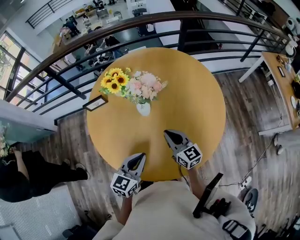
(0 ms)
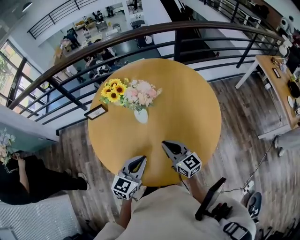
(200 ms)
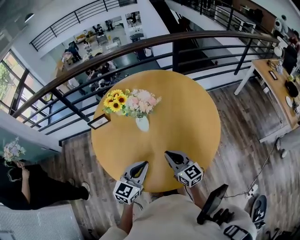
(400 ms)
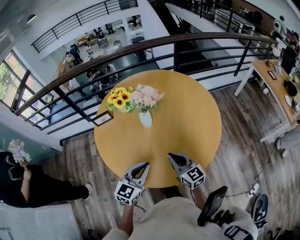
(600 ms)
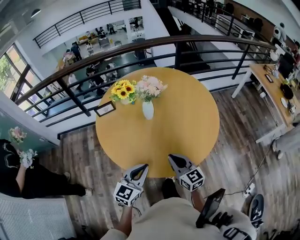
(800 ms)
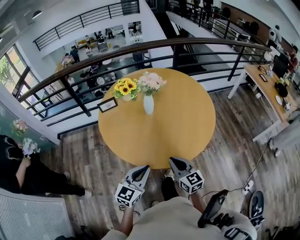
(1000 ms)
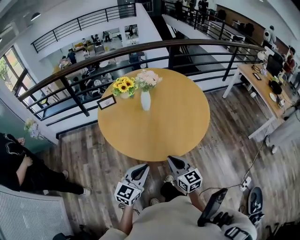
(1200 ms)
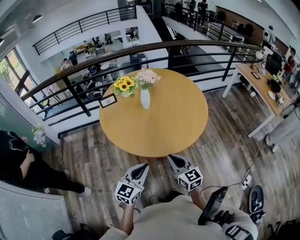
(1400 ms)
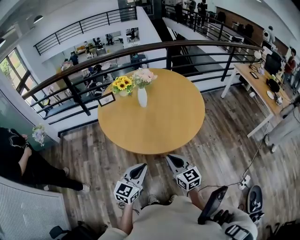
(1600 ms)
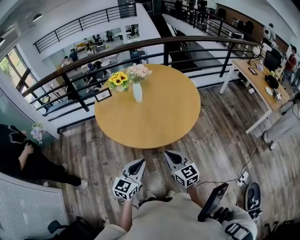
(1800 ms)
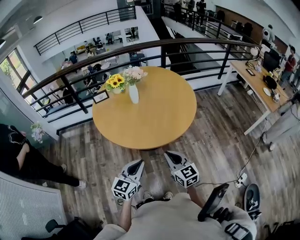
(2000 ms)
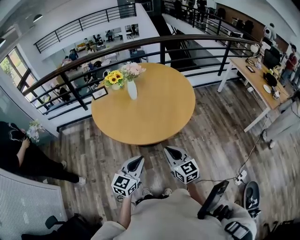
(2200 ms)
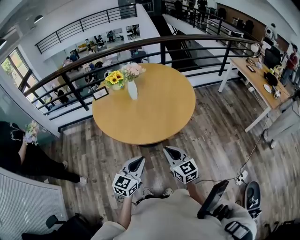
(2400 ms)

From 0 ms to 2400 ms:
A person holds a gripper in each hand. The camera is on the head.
From 0 ms to 1200 ms: Both grippers move backward, approximately 25 cm.
From 1200 ms to 2400 ms: Both grippers move to the right and backward, about 10 cm.

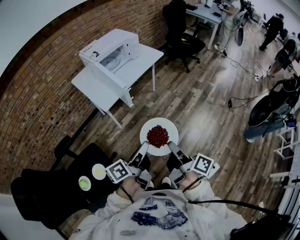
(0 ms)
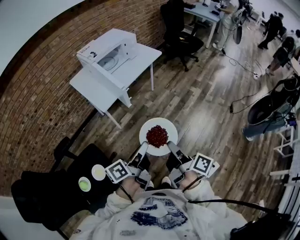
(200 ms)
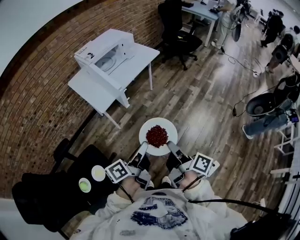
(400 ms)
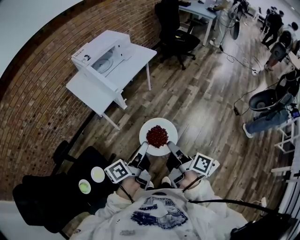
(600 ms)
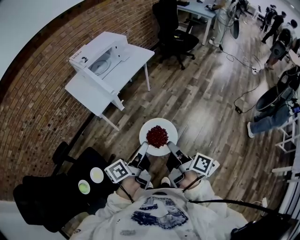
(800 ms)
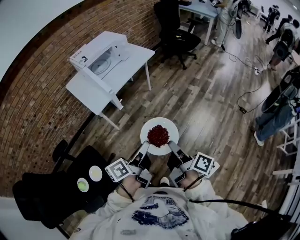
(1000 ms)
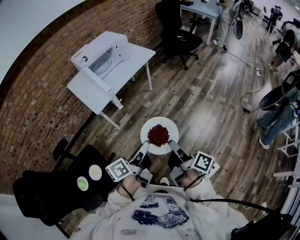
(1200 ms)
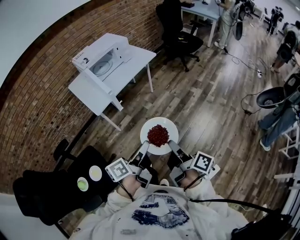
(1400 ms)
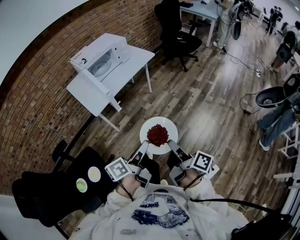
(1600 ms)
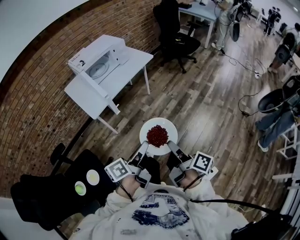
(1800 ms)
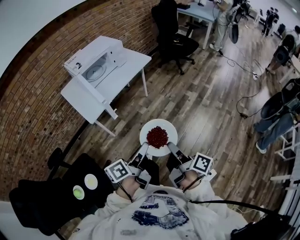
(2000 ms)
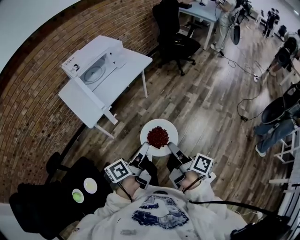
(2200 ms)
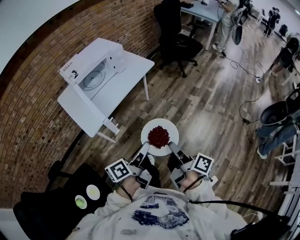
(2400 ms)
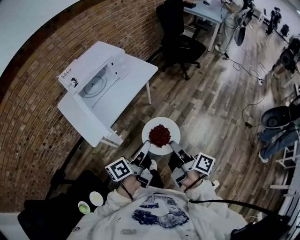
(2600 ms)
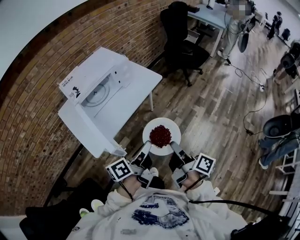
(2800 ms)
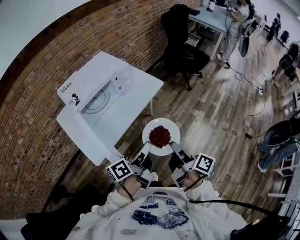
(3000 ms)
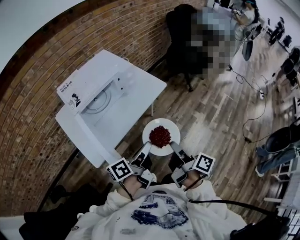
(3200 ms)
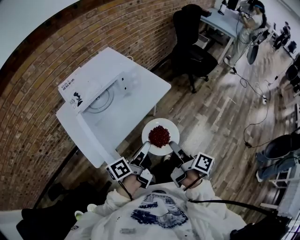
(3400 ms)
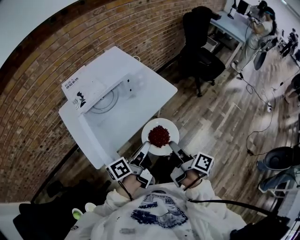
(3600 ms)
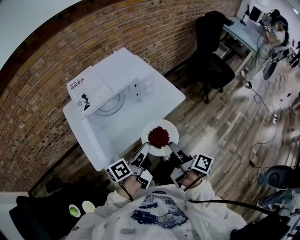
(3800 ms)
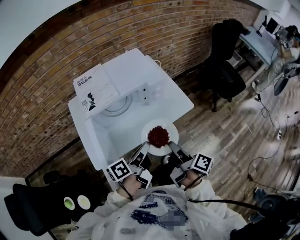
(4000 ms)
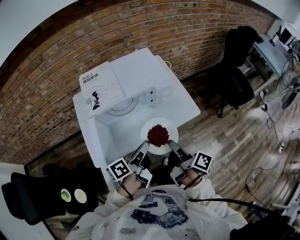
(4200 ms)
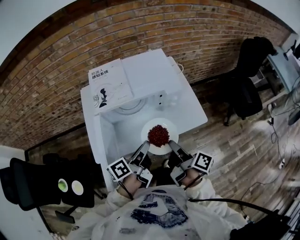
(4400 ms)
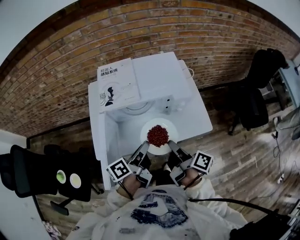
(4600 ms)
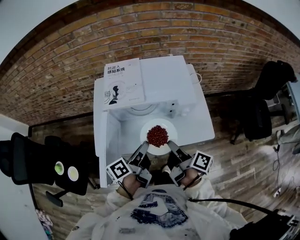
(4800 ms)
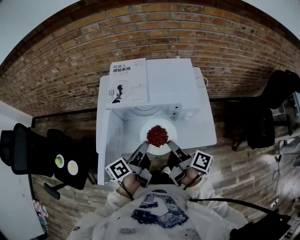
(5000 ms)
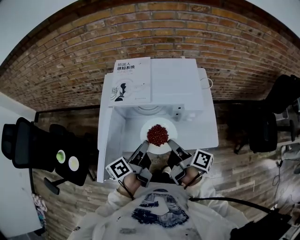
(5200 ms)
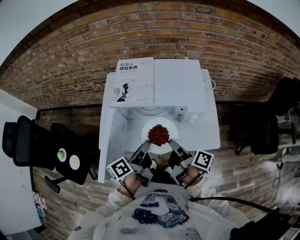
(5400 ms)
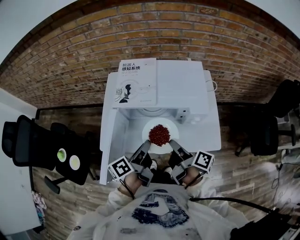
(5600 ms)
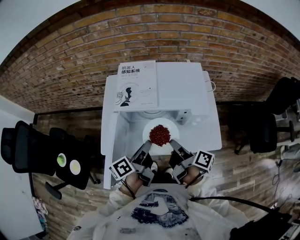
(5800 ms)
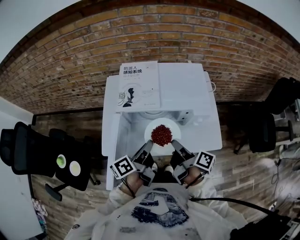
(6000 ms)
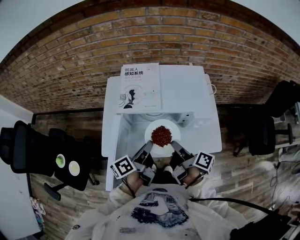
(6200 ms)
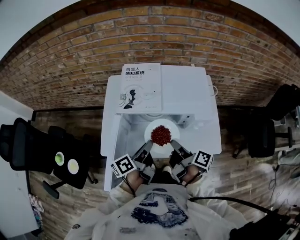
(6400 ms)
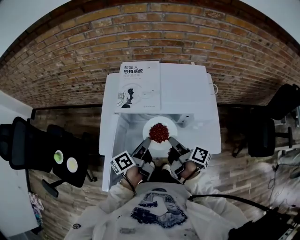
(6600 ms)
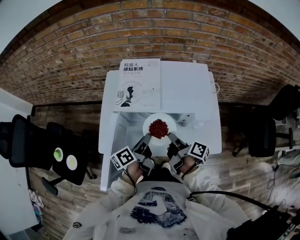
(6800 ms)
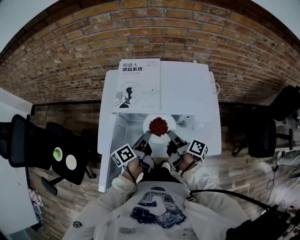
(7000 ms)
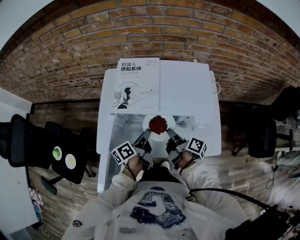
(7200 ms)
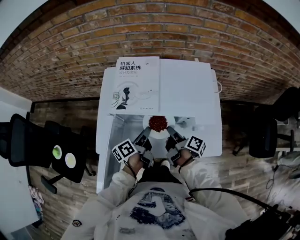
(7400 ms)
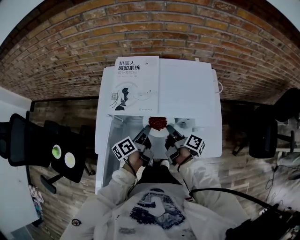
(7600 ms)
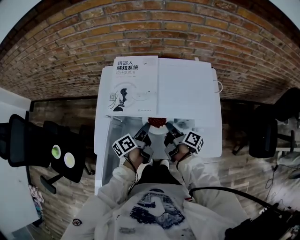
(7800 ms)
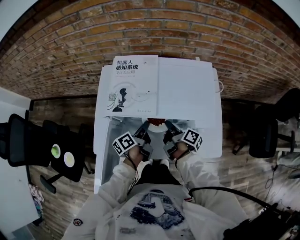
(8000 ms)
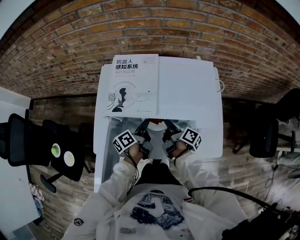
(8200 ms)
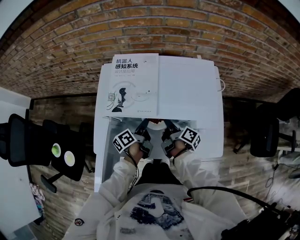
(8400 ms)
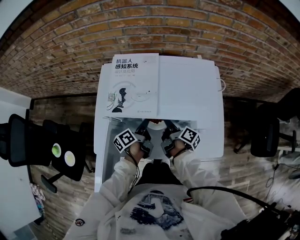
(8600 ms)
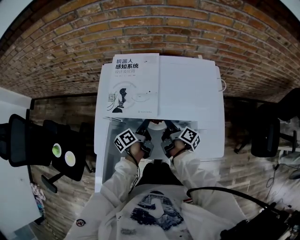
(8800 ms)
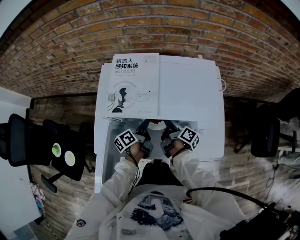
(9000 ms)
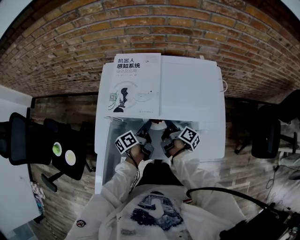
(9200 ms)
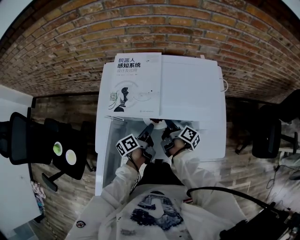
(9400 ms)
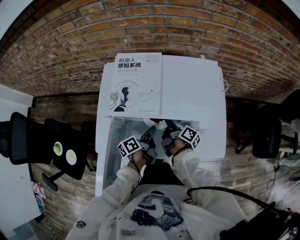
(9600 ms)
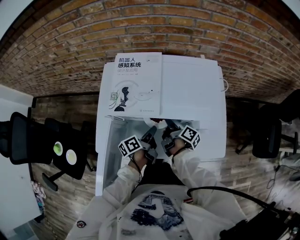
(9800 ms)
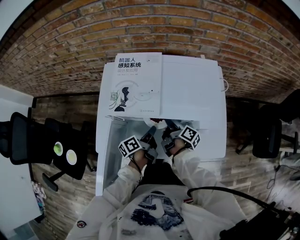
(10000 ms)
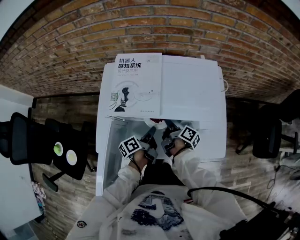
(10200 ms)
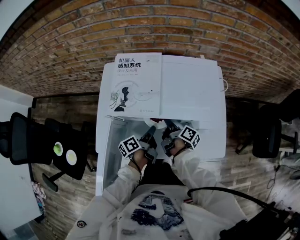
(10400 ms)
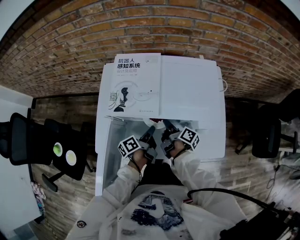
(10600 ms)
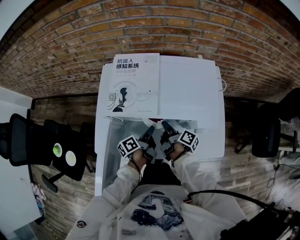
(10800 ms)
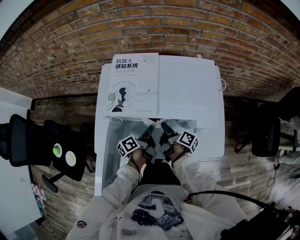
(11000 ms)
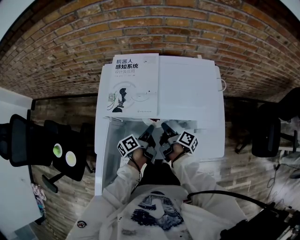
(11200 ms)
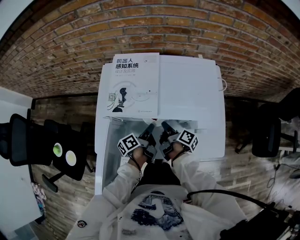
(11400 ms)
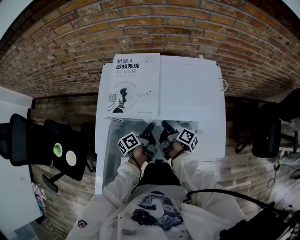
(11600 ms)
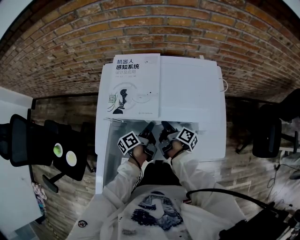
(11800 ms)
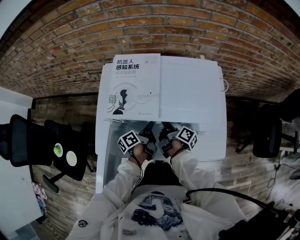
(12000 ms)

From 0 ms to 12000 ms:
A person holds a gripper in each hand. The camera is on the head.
From 0 ms to 1600 ms: The left gripper changes place by roughly 10 cm.
From 1600 ms to 3000 ms: The left gripper changes place by approximately 40 cm.
From 3000 ms to 4400 ms: The left gripper changes place by about 25 cm, and turns by about 30 degrees.
From 4400 ms to 6000 ms: The left gripper moves roughly 10 cm.
From 6000 ms to 7600 ms: The left gripper shifts approximately 10 cm downward.
From 7600 ms to 9000 ms: The left gripper is displaced downward by approximately 5 cm.

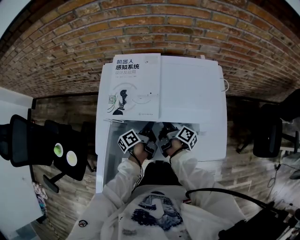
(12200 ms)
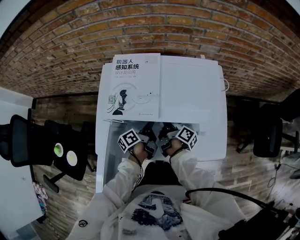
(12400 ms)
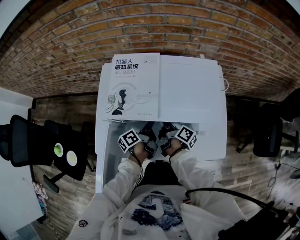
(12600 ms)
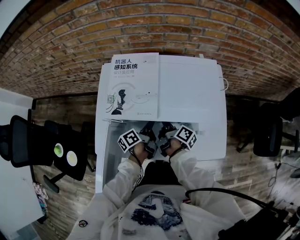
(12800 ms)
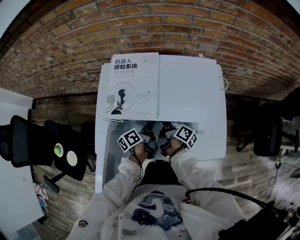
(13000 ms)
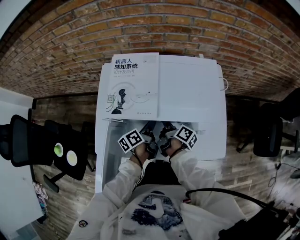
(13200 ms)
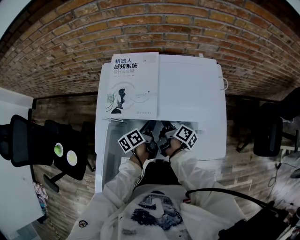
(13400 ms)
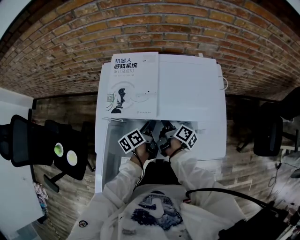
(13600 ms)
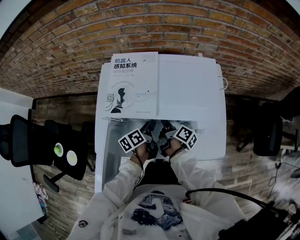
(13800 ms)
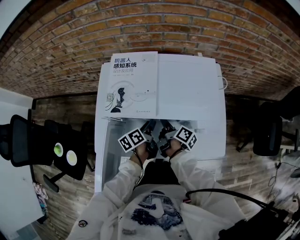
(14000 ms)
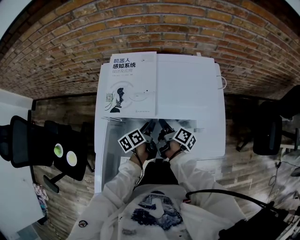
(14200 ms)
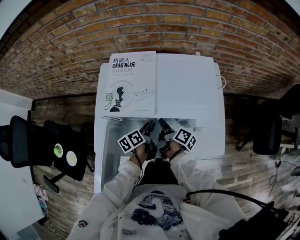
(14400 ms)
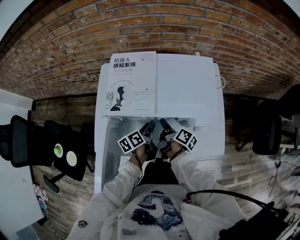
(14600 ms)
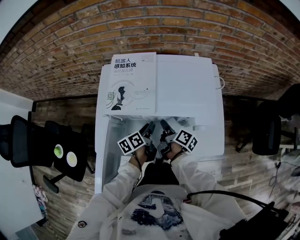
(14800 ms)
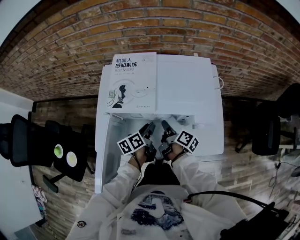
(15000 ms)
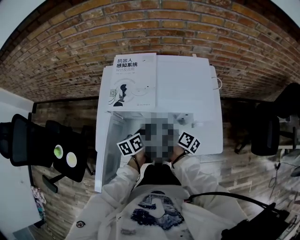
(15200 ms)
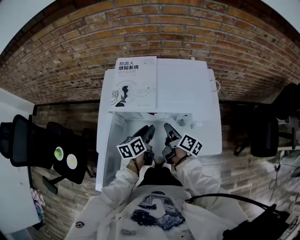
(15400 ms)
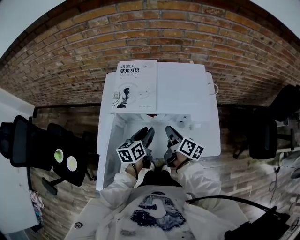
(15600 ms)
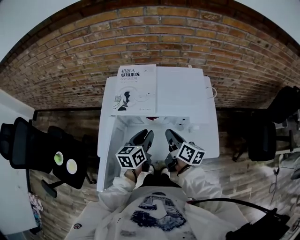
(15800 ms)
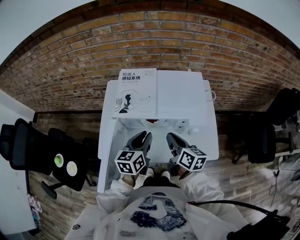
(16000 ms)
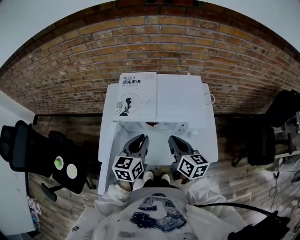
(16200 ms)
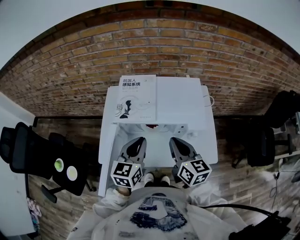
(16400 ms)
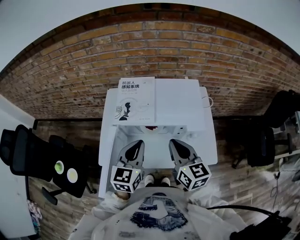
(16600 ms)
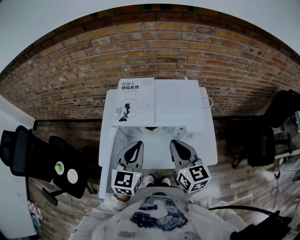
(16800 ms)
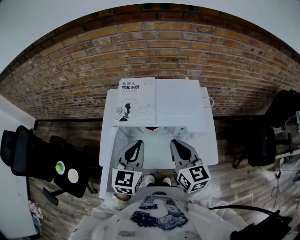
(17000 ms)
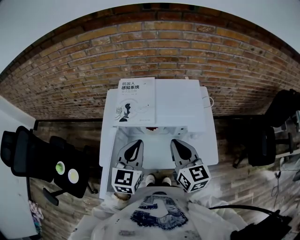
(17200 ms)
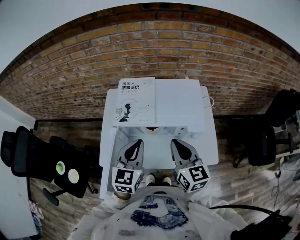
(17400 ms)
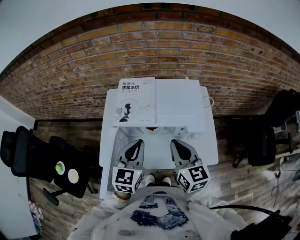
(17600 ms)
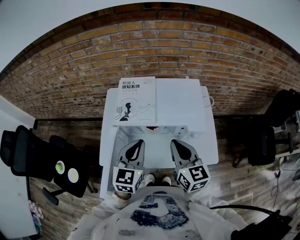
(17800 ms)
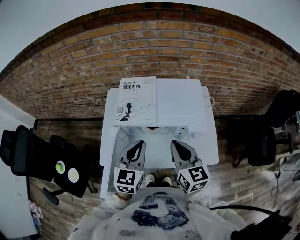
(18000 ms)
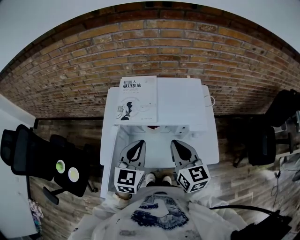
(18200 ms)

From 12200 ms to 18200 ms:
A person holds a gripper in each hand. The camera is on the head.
From 12200 ms to 13800 ms: The left gripper opens its fingers.
From 13800 ms to 15200 ms: The left gripper moves some 5 cm.
From 15200 ms to 16600 ms: The left gripper shifts about 20 cm upward, rotates around the line of its fingers by about 50 degrees, clockwise from behind, and closes up.

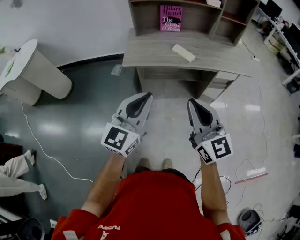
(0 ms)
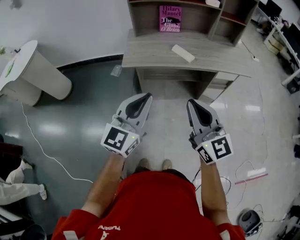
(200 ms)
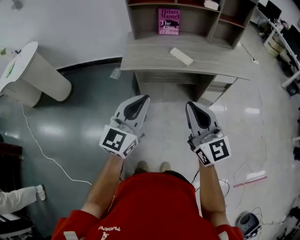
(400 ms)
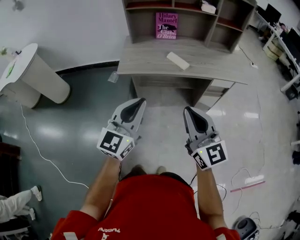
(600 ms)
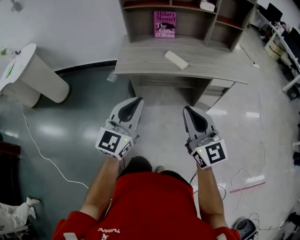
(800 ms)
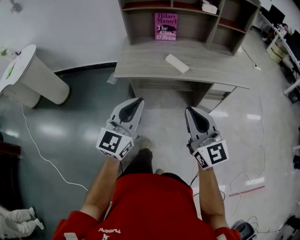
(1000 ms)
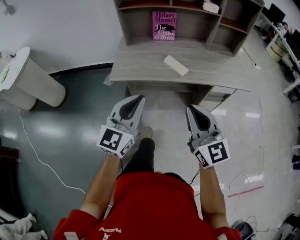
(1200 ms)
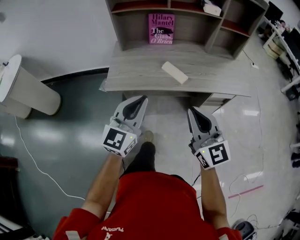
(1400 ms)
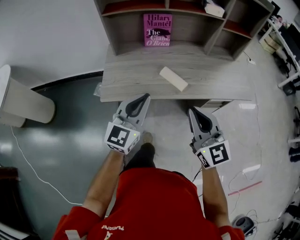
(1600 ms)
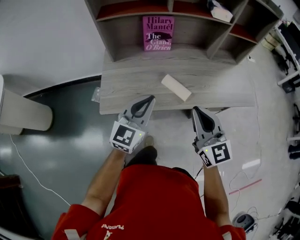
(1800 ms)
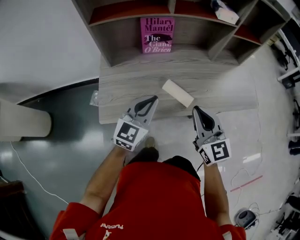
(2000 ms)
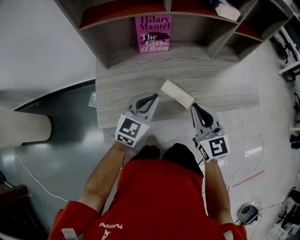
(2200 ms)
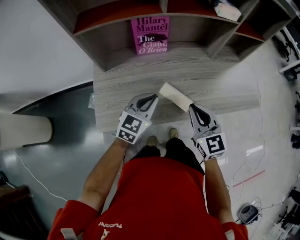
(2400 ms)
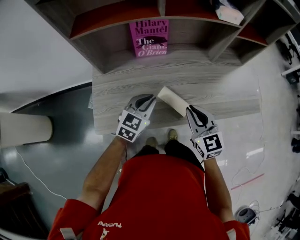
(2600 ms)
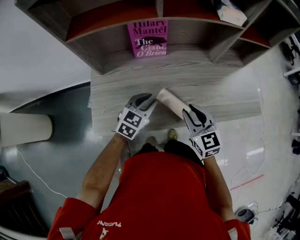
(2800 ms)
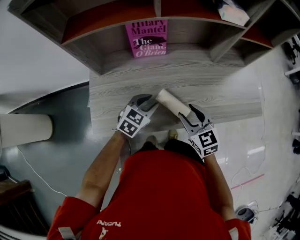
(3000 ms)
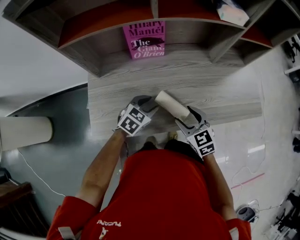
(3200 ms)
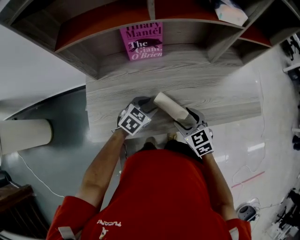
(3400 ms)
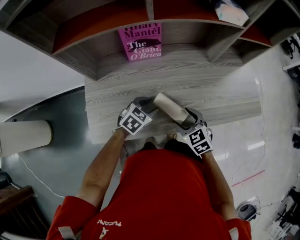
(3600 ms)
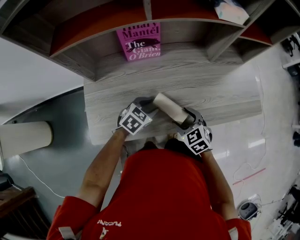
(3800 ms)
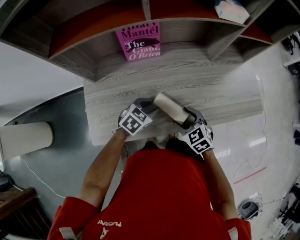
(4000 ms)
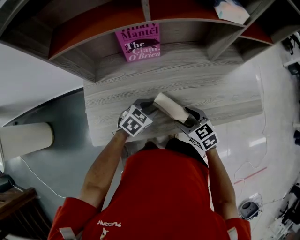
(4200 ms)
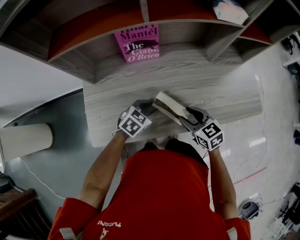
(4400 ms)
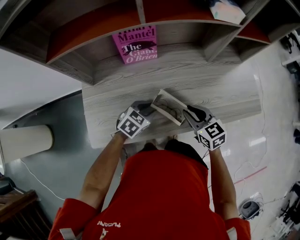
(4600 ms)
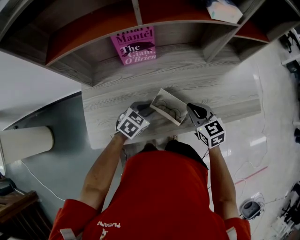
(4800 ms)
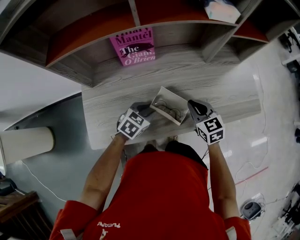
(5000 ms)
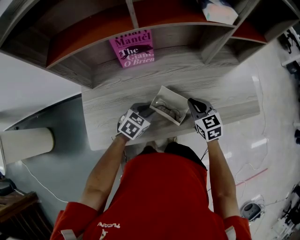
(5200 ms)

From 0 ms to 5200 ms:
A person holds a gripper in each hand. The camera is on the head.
From 0 ms to 1800 ms: The two grippers go some 35 cm forward.
From 1800 ms to 3400 ms: Both grippers move downward and forward, some 25 cm. The right gripper tips its fingers downward by about 40 degrees, and opens up, while the left gripper points its fingers approximately 50 degrees further downward, and opens up.
From 3400 ms to 5200 ms: The right gripper travels forward and to the right by some 10 cm, and closes up.
